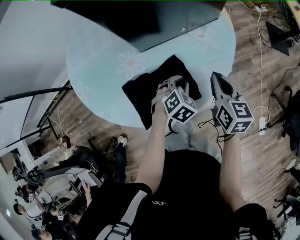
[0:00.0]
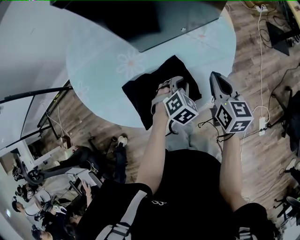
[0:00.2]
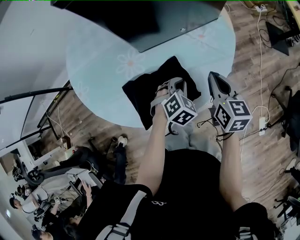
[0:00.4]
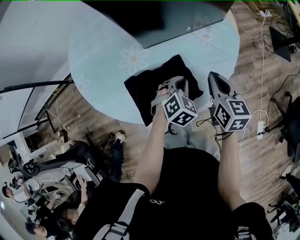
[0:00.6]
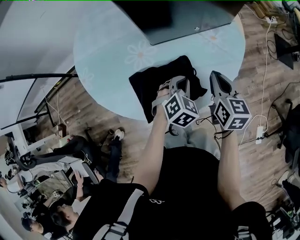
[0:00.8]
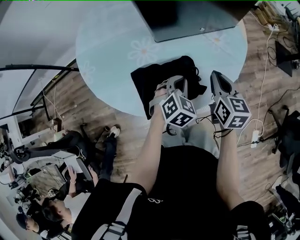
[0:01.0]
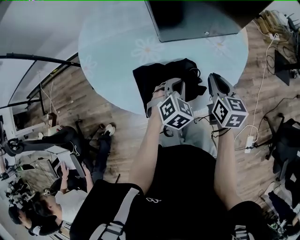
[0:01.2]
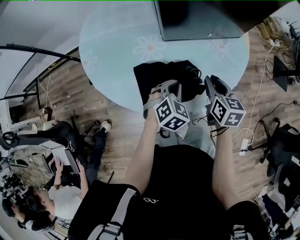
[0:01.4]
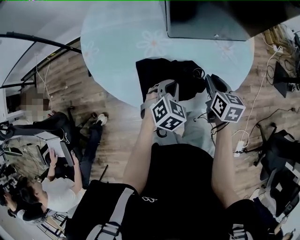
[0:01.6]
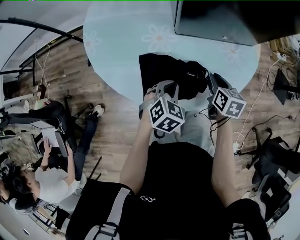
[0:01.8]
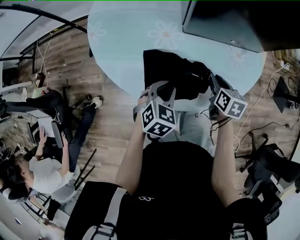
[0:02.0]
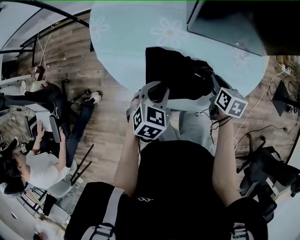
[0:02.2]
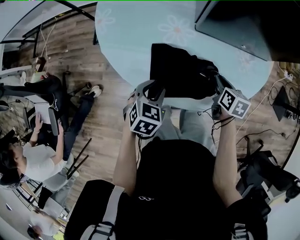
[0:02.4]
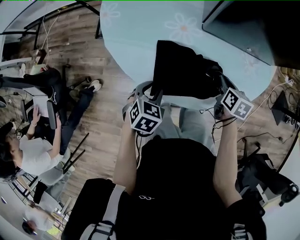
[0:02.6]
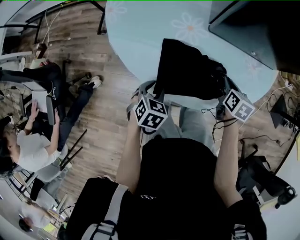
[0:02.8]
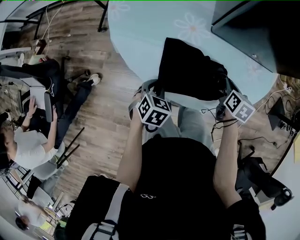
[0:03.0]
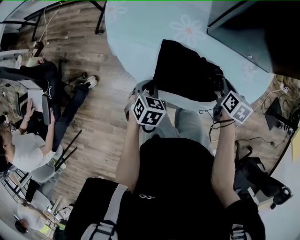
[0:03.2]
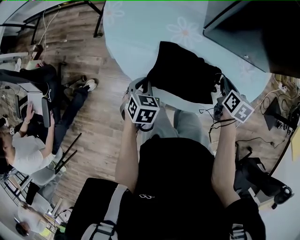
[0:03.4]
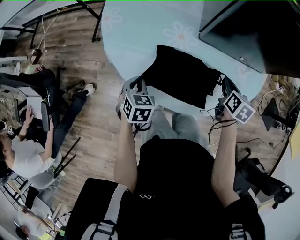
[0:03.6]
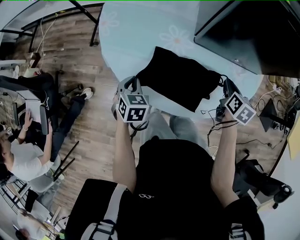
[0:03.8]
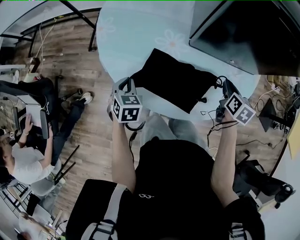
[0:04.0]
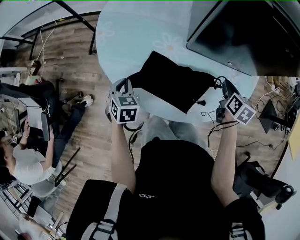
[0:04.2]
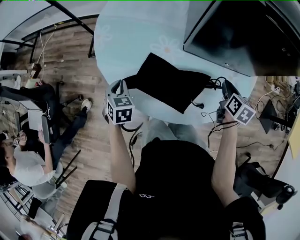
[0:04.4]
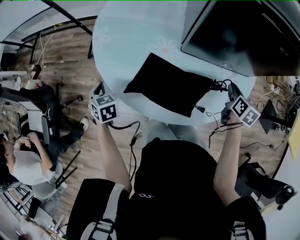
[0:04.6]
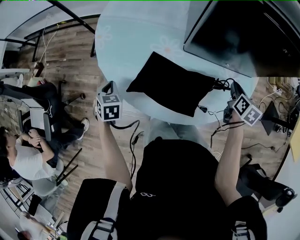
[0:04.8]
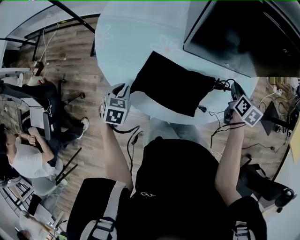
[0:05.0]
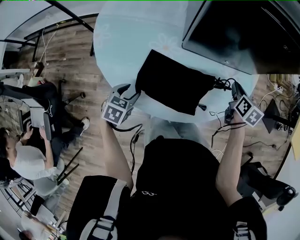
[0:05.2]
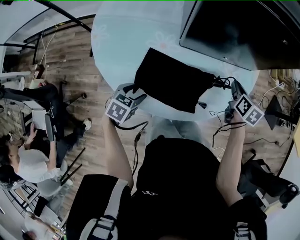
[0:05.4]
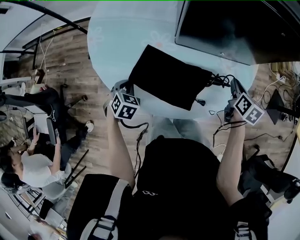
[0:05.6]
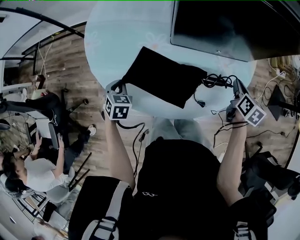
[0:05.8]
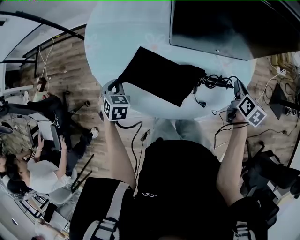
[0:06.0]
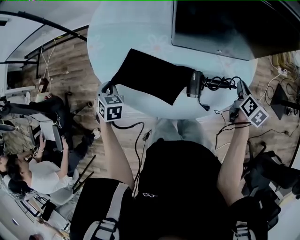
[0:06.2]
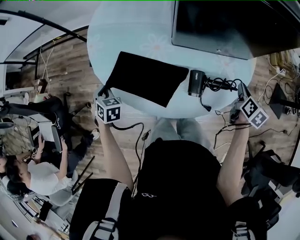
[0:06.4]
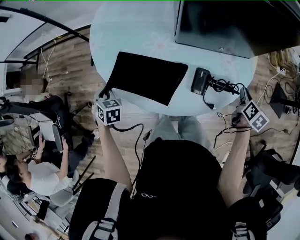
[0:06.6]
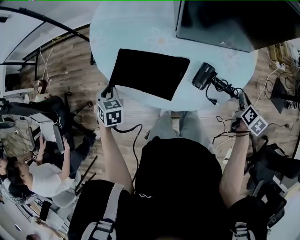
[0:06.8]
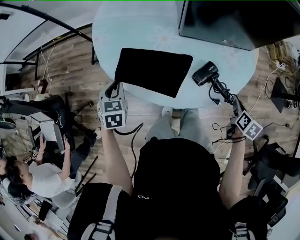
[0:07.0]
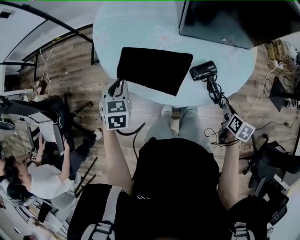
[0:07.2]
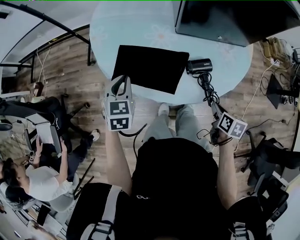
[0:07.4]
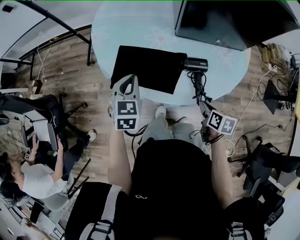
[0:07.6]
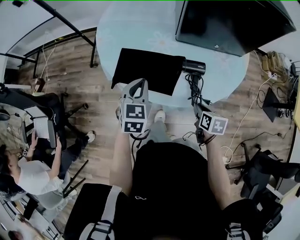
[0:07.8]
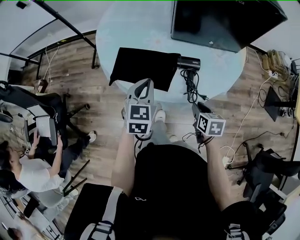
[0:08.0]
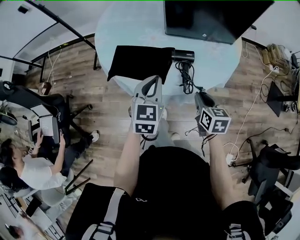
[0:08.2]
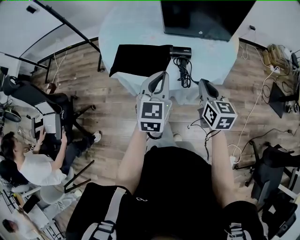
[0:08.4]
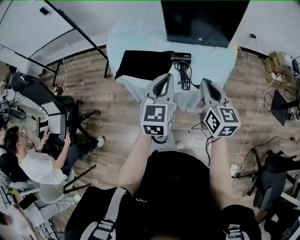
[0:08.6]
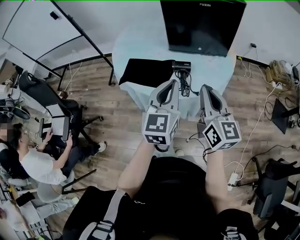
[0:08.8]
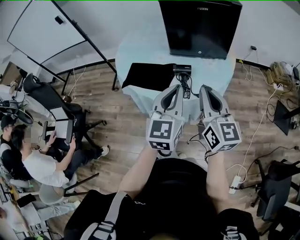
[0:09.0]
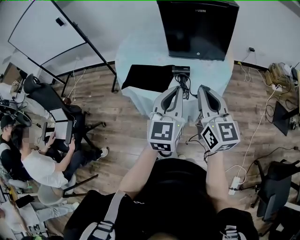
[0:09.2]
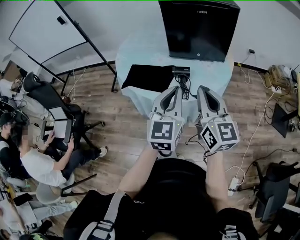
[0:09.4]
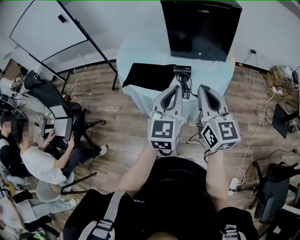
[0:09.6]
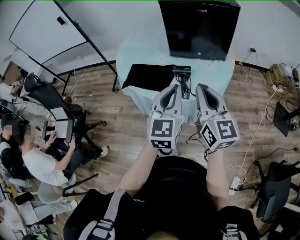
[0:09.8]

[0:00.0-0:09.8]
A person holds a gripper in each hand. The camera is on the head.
0:00.0 to 0:01.4: The grippers both shift to the left by some 5 cm. The right gripper opens up.
0:01.4 to 0:02.8: The right gripper moves downward, about 10 cm. Meanwhile the left gripper shifts some 20 cm to the left, backward and downward, rotates approximately 40 degrees, and opens its fingers.
0:02.8 to 0:04.2: The left gripper travels forward and to the left by about 10 cm, changes its angle by some 20 degrees, and closes its fingers, while the right gripper goes approximately 10 cm upward, to the right and forward.
0:04.2 to 0:05.6: The right gripper shifts by roughly 10 cm; the left gripper turns by some 20 degrees, and opens, then closes once more.
0:05.6 to 0:07.0: The right gripper goes approximately 15 cm backward. The left gripper goes about 10 cm upward and to the left.
0:07.0 to 0:08.4: The right gripper travels to the left and upward by about 20 cm, and rotates some 40 degrees. The left gripper heads to the right, upward and backward, covering approximately 30 cm, and tilts its fingers about 30 degrees upward.
0:08.4 to 0:09.8: The left gripper goes about 15 cm upward, backward and to the right; the right gripper moves upward and backward, some 20 cm, and swivels roughly 30 degrees.

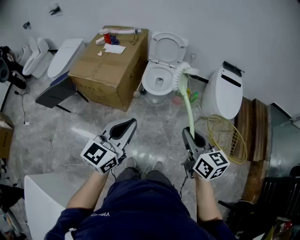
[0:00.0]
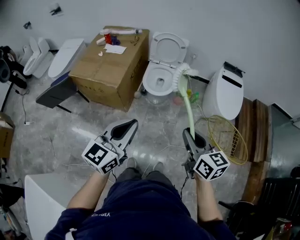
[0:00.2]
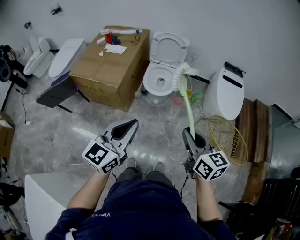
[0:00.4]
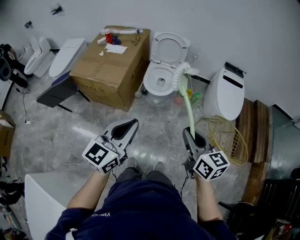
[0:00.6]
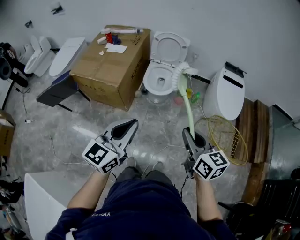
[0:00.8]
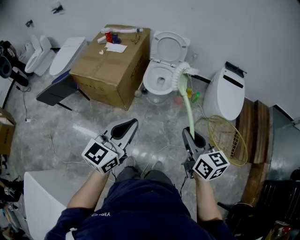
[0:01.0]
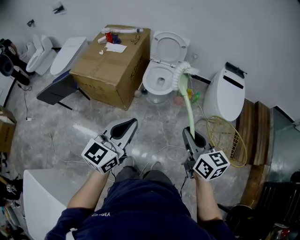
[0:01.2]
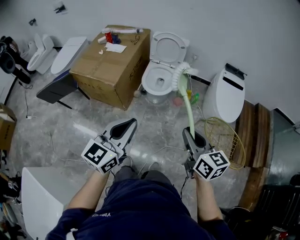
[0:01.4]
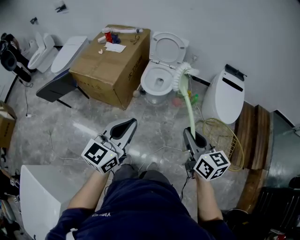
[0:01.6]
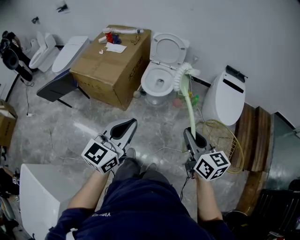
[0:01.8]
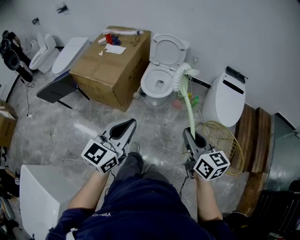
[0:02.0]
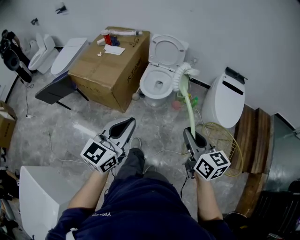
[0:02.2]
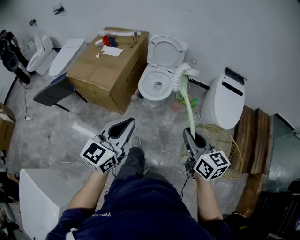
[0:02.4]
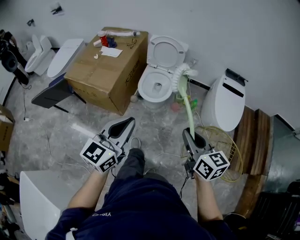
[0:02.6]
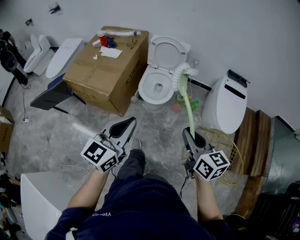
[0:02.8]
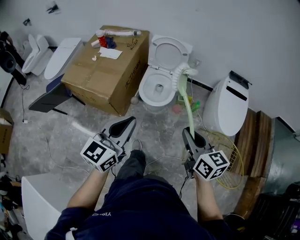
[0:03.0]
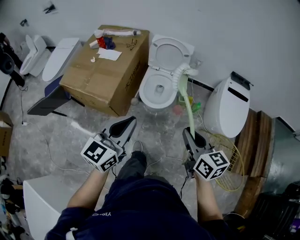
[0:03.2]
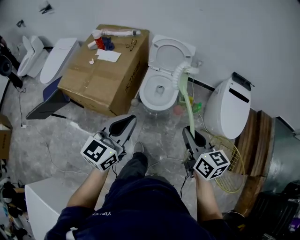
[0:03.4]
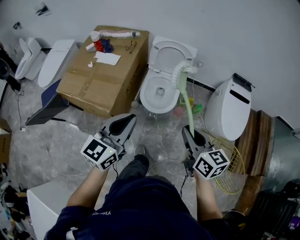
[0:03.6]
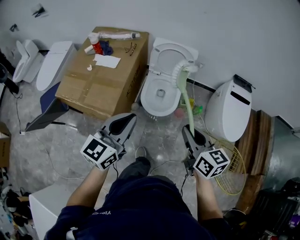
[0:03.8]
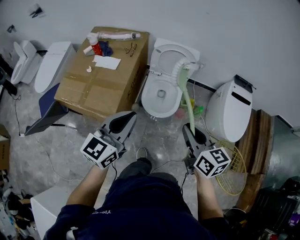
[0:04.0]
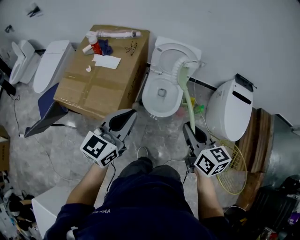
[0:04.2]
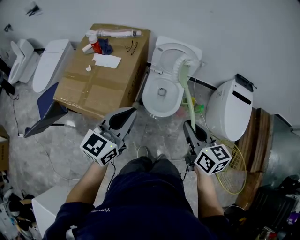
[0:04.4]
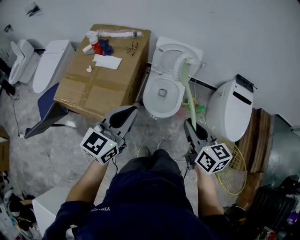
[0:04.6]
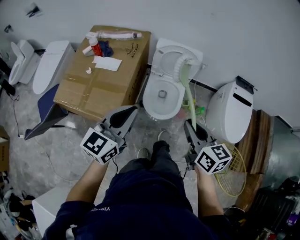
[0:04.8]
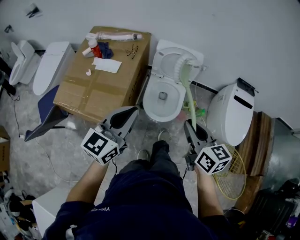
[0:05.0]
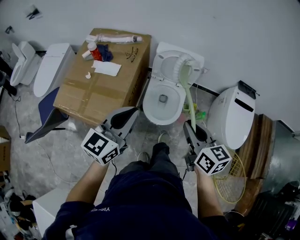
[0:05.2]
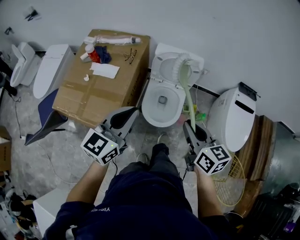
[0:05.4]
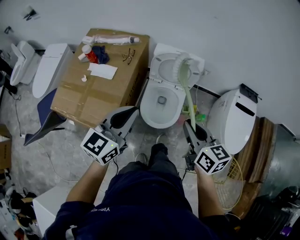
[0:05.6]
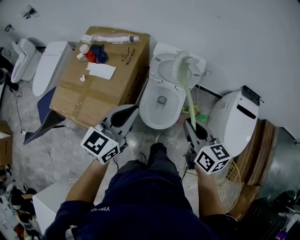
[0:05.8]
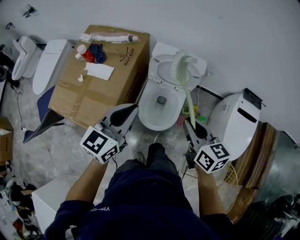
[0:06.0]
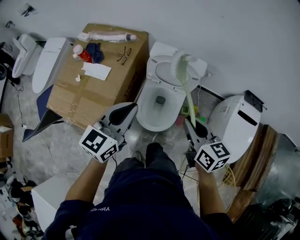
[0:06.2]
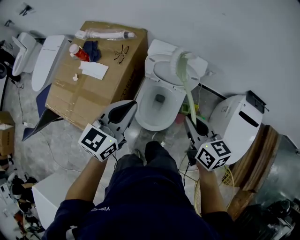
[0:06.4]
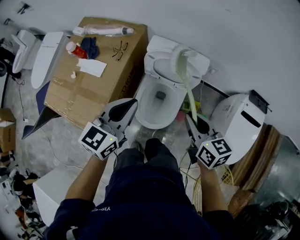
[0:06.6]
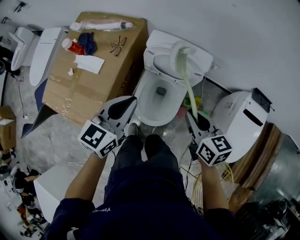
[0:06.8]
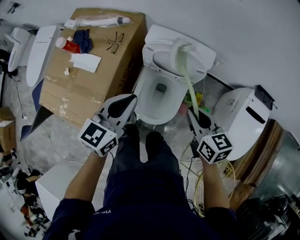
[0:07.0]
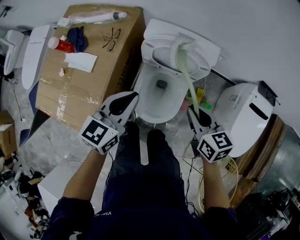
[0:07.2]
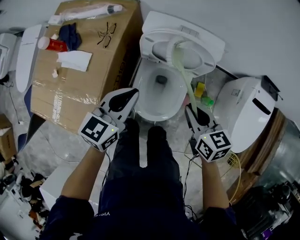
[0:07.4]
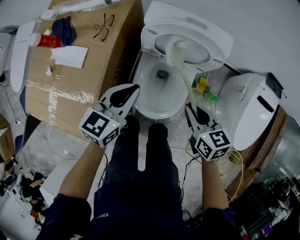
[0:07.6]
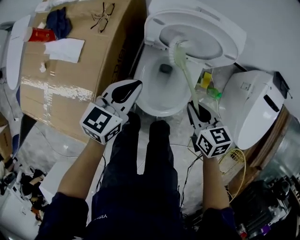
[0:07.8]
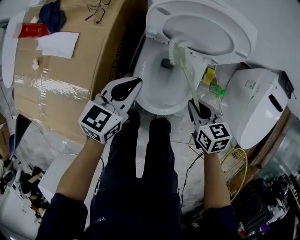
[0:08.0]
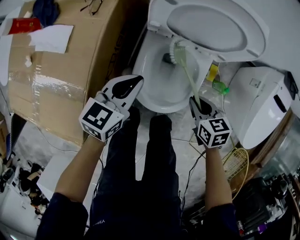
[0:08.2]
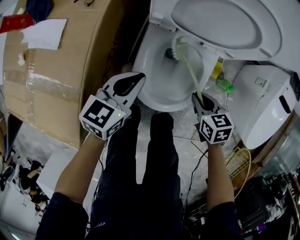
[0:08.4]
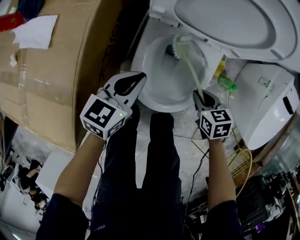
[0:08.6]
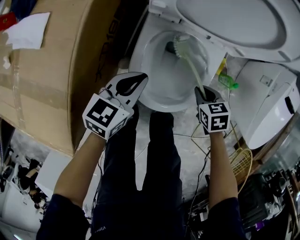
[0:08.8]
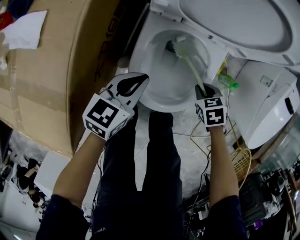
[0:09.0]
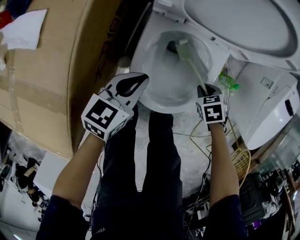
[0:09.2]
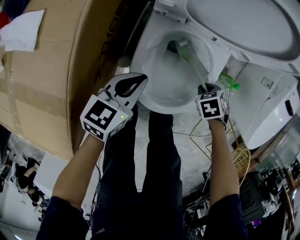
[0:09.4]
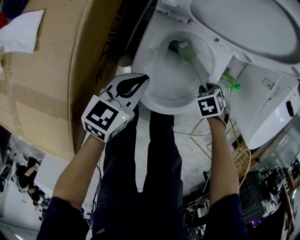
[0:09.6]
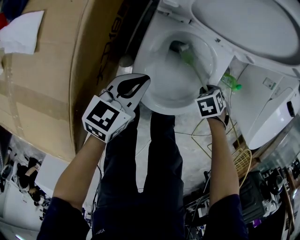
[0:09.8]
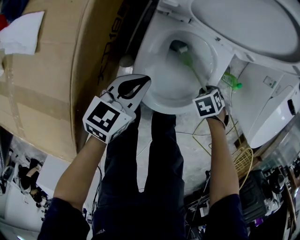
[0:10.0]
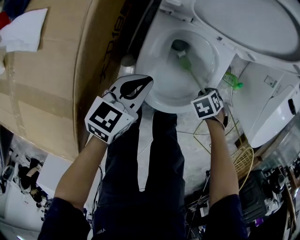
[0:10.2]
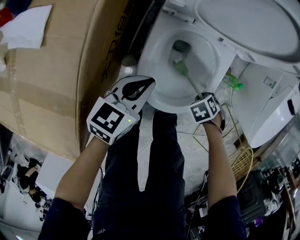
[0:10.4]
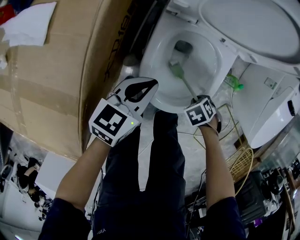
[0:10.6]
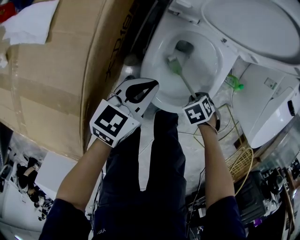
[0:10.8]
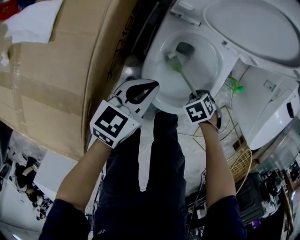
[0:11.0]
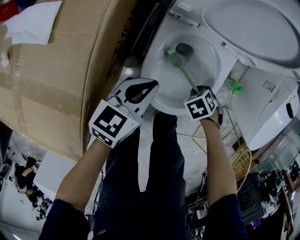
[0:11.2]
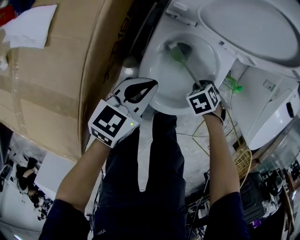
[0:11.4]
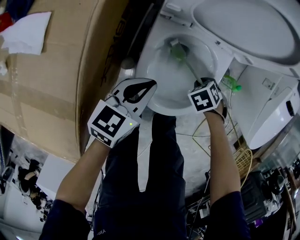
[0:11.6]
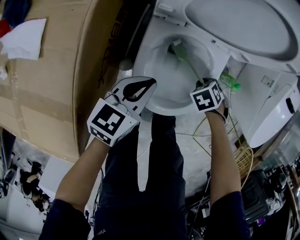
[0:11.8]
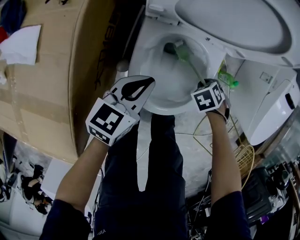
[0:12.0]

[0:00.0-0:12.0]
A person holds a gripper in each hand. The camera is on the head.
0:00.0 to 0:01.6: The grippers both shift to the right by approximately 5 cm.
0:01.6 to 0:03.0: Both grippers travel together forward, about 15 cm.
0:03.0 to 0:04.4: Both grippers move forward and to the left, roughly 25 cm.
0:04.4 to 0:06.0: Both grippers travel together forward, roughly 20 cm.
0:06.0 to 0:07.6: The left gripper shifts approximately 25 cm downward and forward, while the right gripper shifts roughly 25 cm downward.
0:07.6 to 0:09.0: The grippers both shift downward by approximately 30 cm. The right gripper tips its fingers downward by approximately 40 degrees.
0:09.0 to 0:10.4: The right gripper ends up about 10 cm from where it was, and rotates approximately 30 degrees.
0:10.4 to 0:12.0: The right gripper shifts by roughly 10 cm.

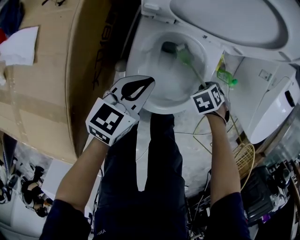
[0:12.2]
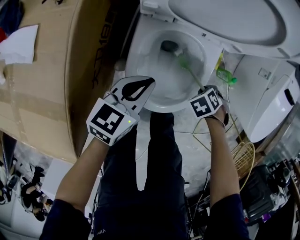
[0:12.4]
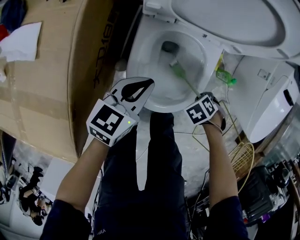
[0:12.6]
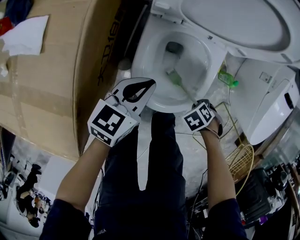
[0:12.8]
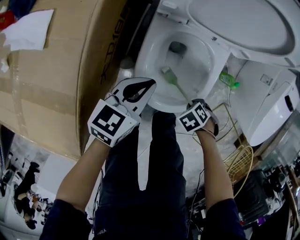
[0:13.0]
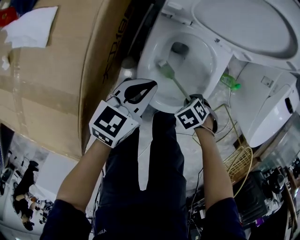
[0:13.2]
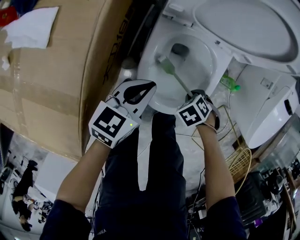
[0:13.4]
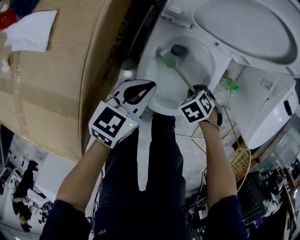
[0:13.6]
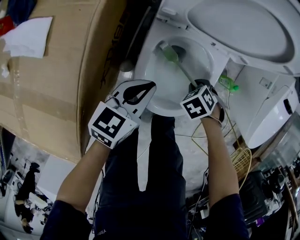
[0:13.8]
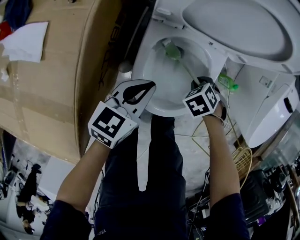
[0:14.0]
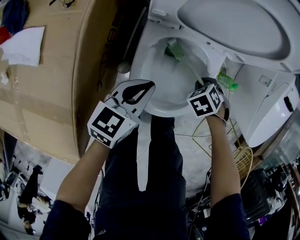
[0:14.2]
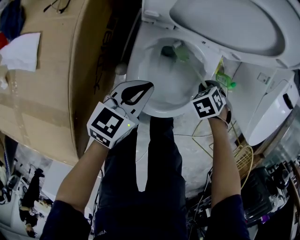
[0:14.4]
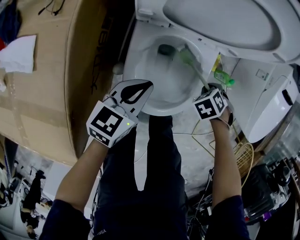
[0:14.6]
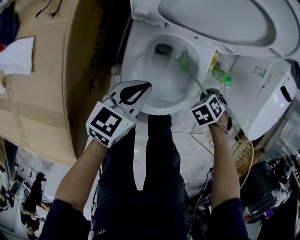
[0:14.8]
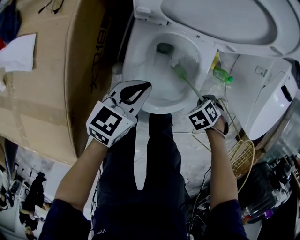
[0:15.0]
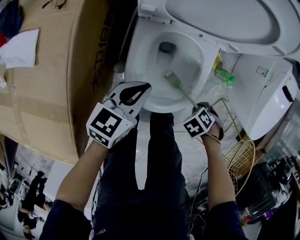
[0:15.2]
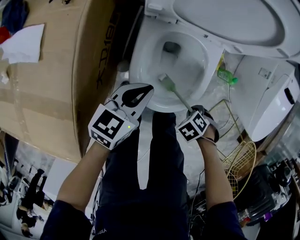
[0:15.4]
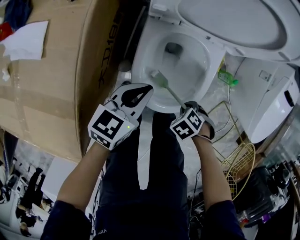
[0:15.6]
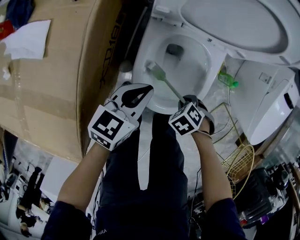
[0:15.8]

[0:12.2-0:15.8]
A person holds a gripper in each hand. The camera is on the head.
0:12.2 to 0:14.0: The right gripper ends up approximately 10 cm from where it was.
0:14.0 to 0:15.8: The right gripper moves roughly 10 cm.
